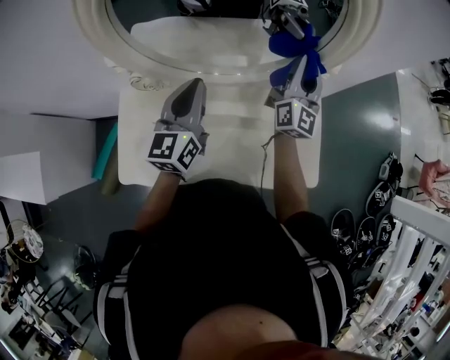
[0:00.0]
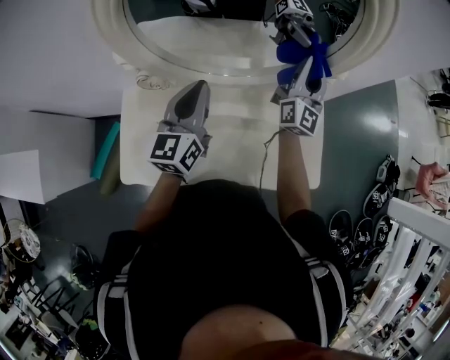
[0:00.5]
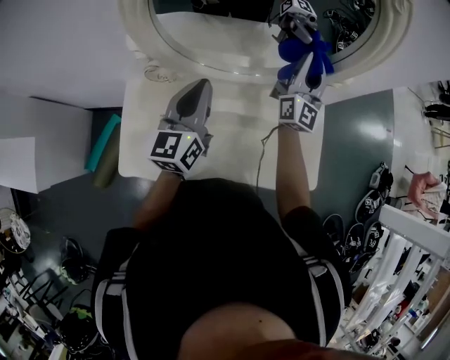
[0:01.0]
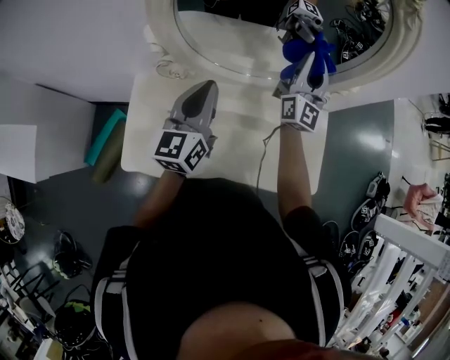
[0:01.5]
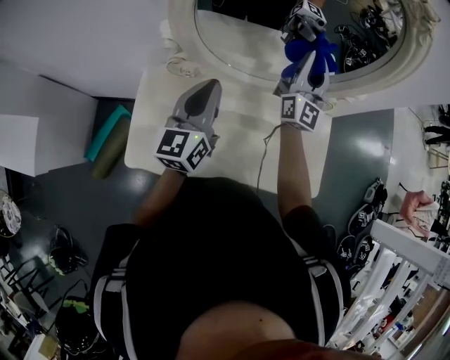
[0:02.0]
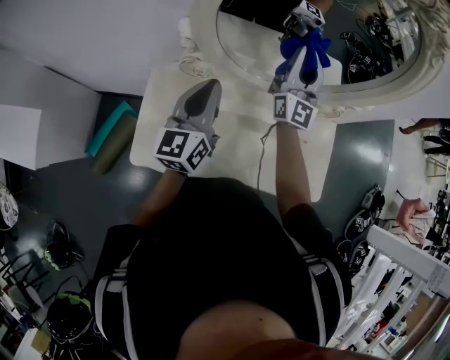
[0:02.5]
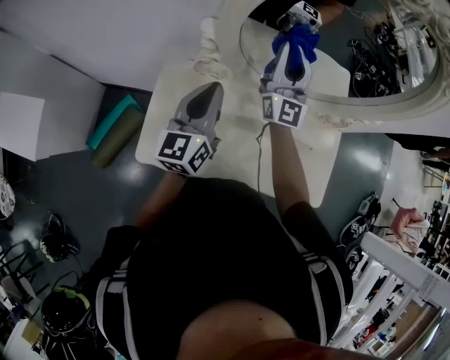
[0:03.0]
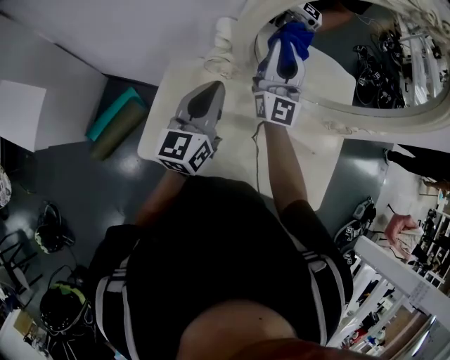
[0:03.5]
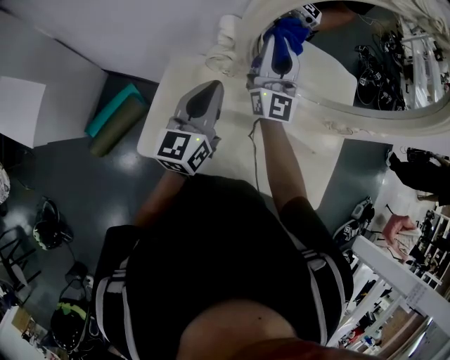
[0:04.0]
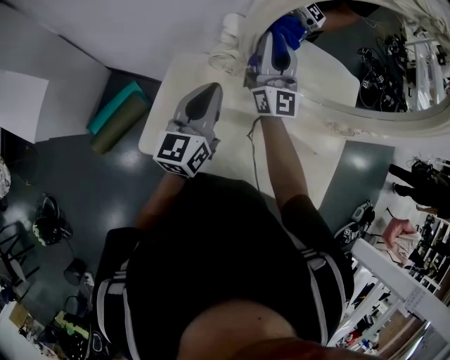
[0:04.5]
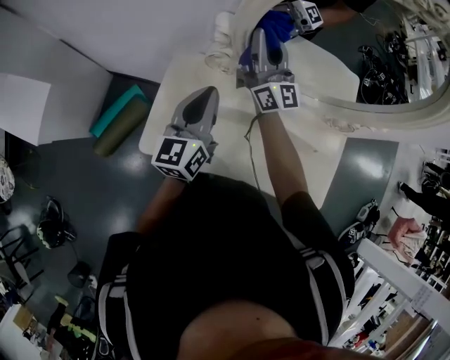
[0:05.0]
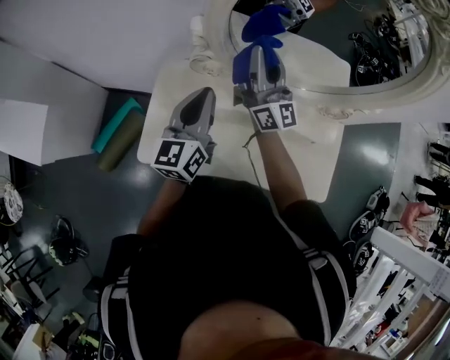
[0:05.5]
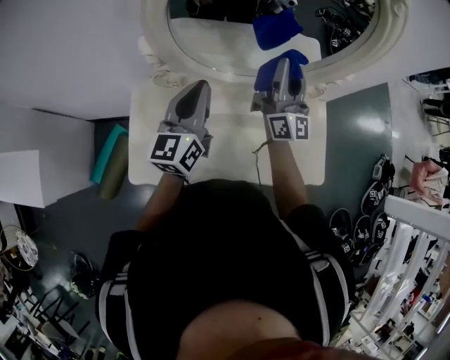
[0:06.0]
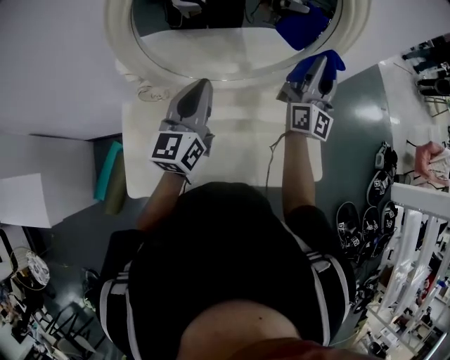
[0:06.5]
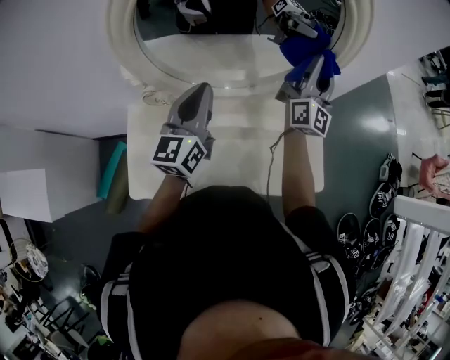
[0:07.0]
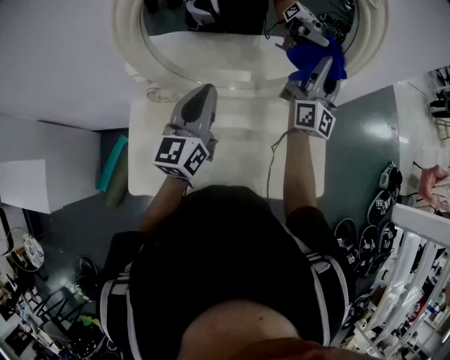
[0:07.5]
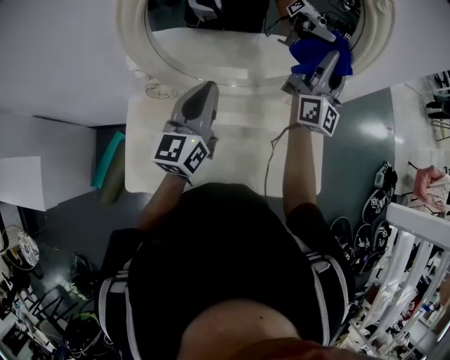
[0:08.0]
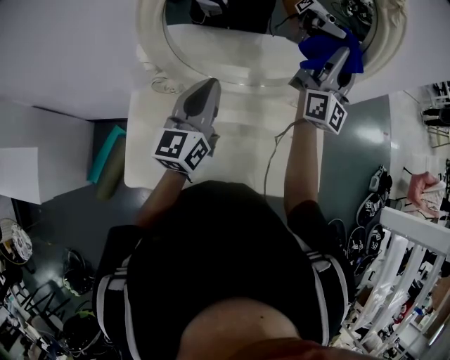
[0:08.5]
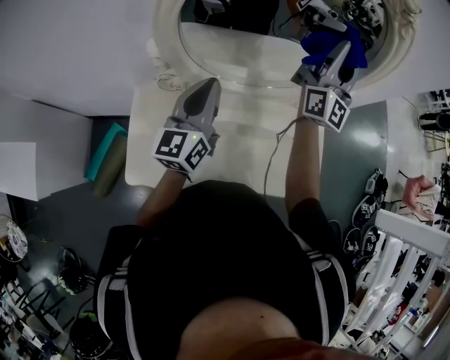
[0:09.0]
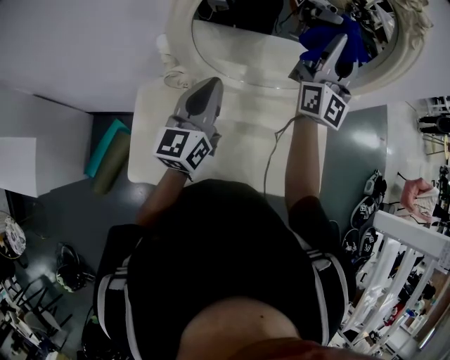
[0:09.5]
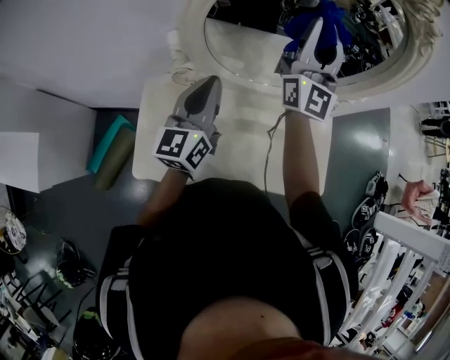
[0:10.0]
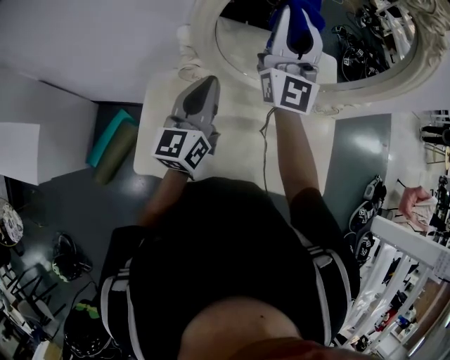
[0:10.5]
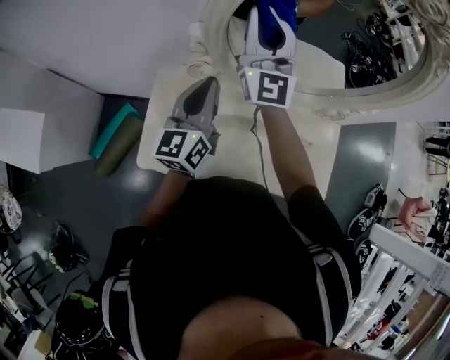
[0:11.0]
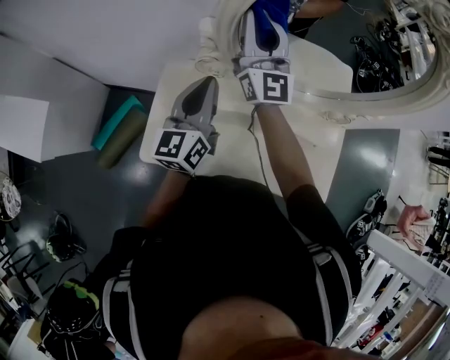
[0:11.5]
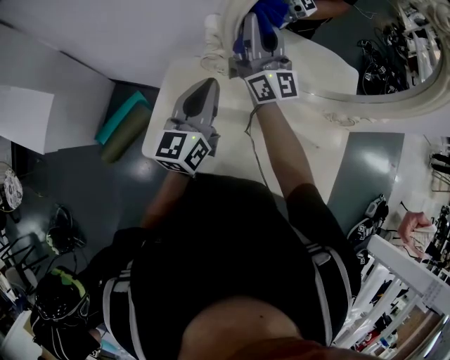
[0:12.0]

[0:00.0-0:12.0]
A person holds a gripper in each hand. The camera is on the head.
0:00.0 to 0:02.0: The right gripper travels to the left and upward by approximately 10 cm, while the left gripper moves backward and to the left, roughly 10 cm.
0:02.0 to 0:04.0: The right gripper shifts some 30 cm to the left, and rotates some 20 degrees. Meanwhile the left gripper is displaced to the left by roughly 15 cm.
0:04.0 to 0:06.0: The right gripper heads to the right and backward, covering approximately 25 cm, and rotates about 20 degrees; the left gripper goes roughly 10 cm to the right.
0:06.0 to 0:08.0: The right gripper heads to the right and forward, covering some 15 cm, and turns by roughly 20 degrees, while the left gripper is displaced to the right by roughly 5 cm.
0:08.0 to 0:10.0: The right gripper is displaced to the left and upward by some 25 cm, and swivels some 20 degrees; the left gripper shifts approximately 10 cm to the left.
0:10.0 to 0:12.0: The right gripper is displaced to the left and downward by about 20 cm, and changes its angle by some 40 degrees; the left gripper goes approximately 10 cm to the left.

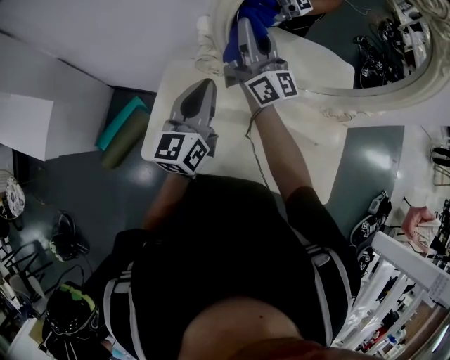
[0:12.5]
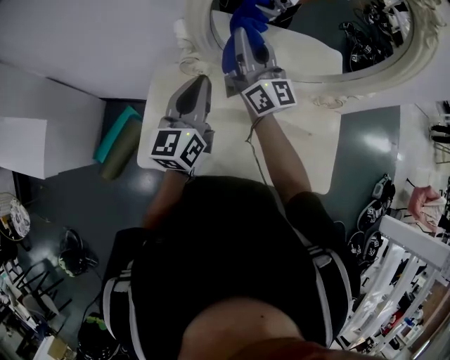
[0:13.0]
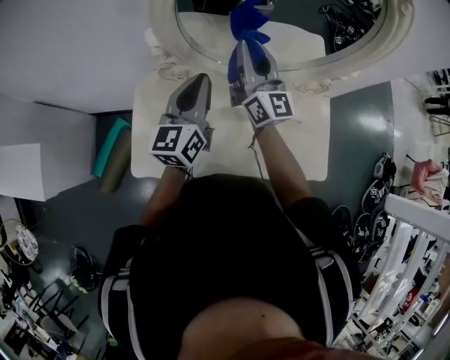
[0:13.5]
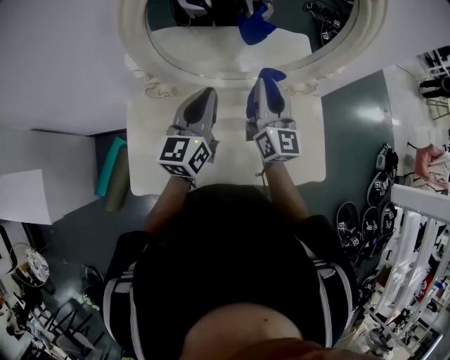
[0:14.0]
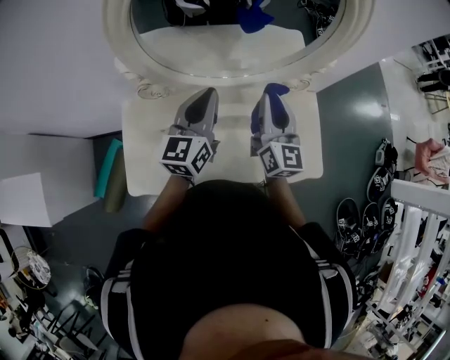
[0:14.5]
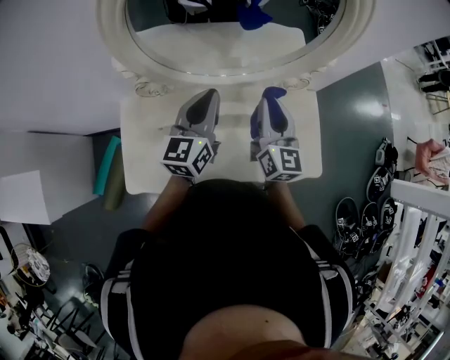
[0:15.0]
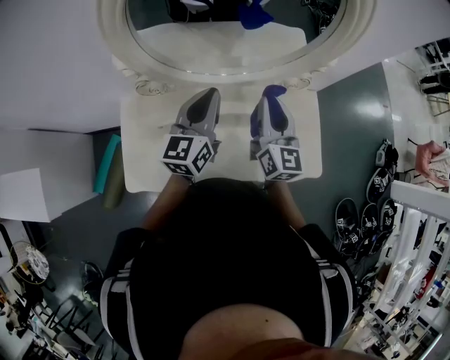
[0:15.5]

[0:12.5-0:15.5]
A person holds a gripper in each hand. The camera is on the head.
0:12.5 to 0:14.0: The left gripper shifts about 15 cm to the right; the right gripper is displaced to the right and backward by roughly 25 cm, and changes its angle by roughly 40 degrees.
0:14.0 to 0:15.5: The right gripper moves to the right, approximately 5 cm.

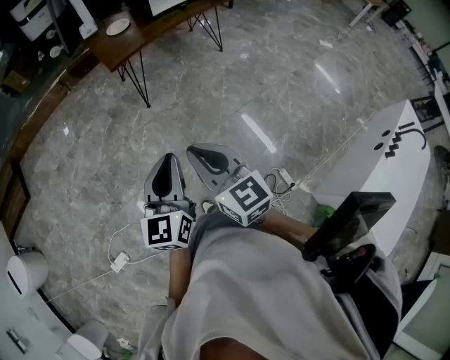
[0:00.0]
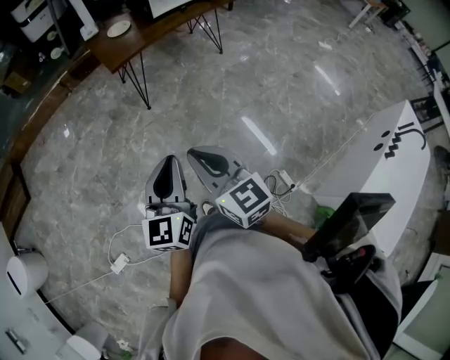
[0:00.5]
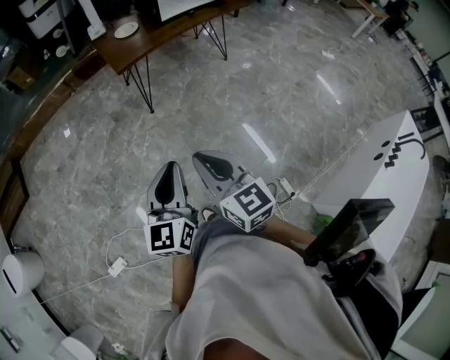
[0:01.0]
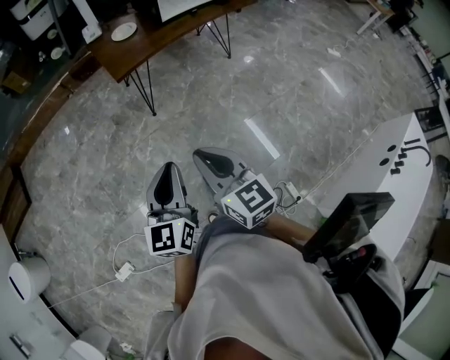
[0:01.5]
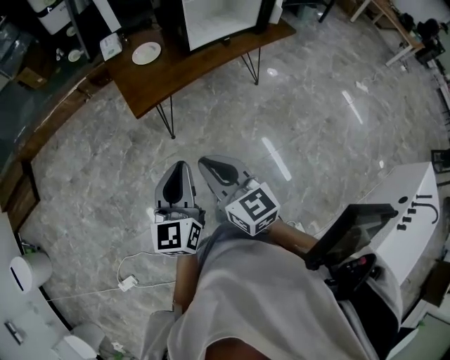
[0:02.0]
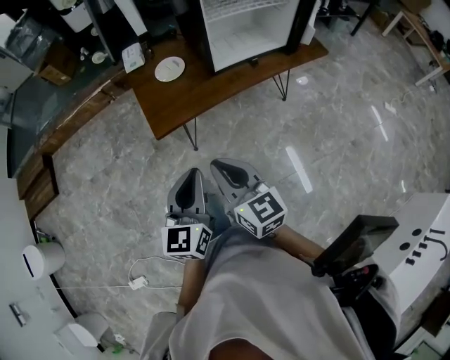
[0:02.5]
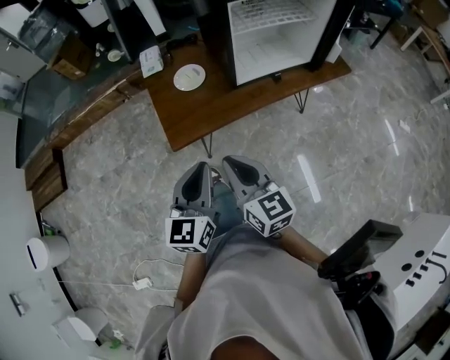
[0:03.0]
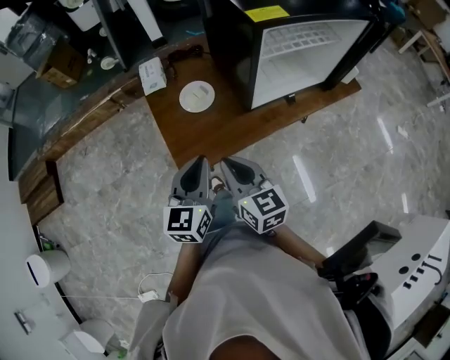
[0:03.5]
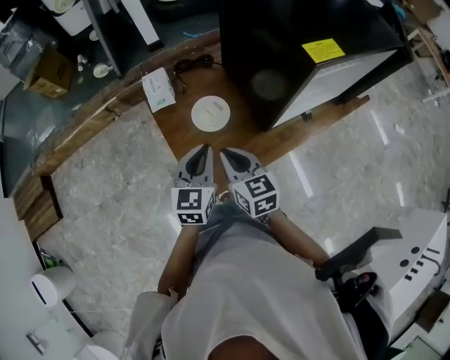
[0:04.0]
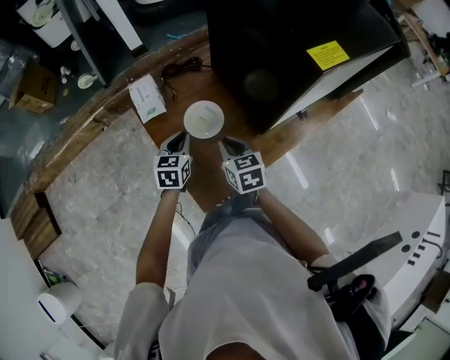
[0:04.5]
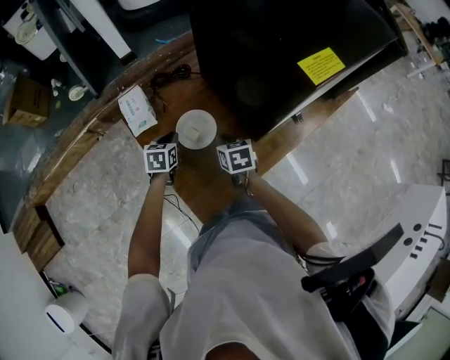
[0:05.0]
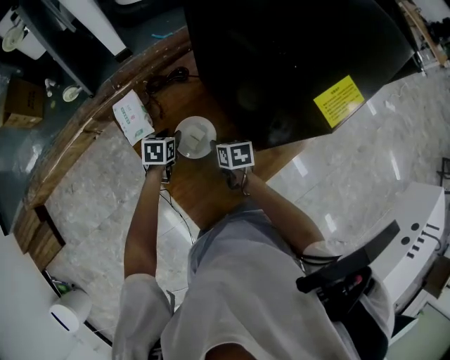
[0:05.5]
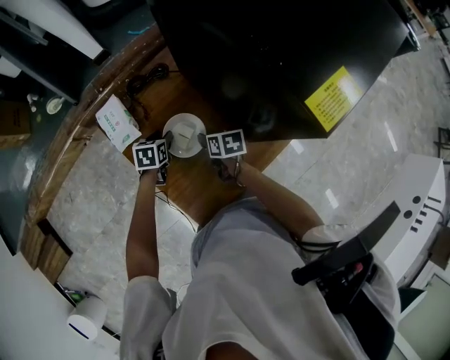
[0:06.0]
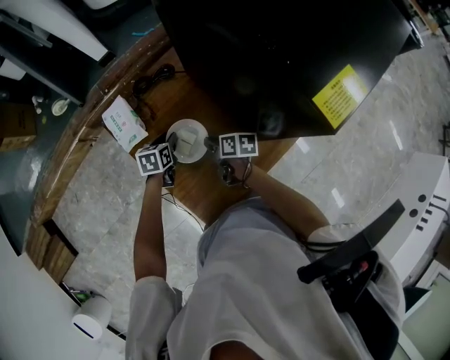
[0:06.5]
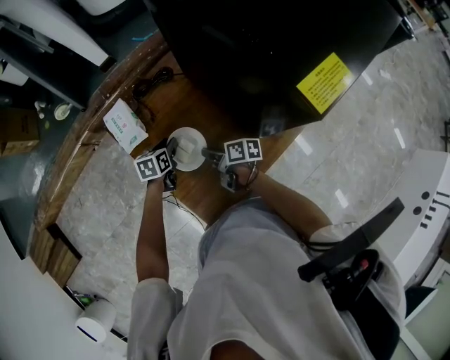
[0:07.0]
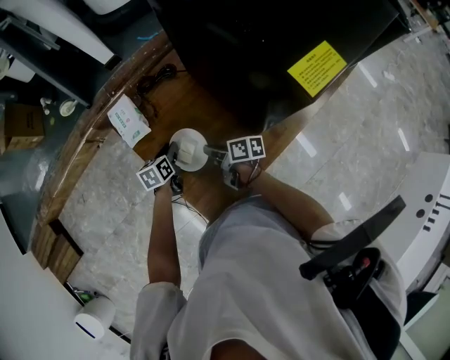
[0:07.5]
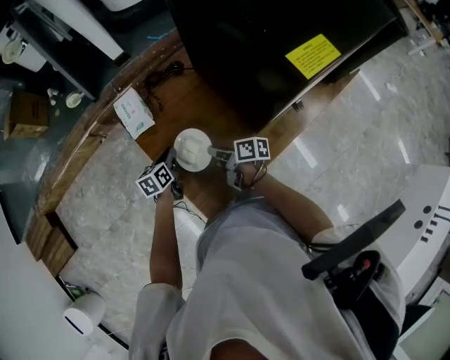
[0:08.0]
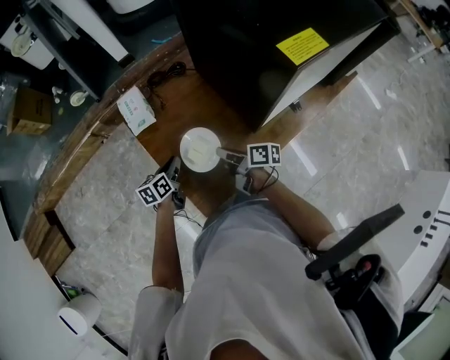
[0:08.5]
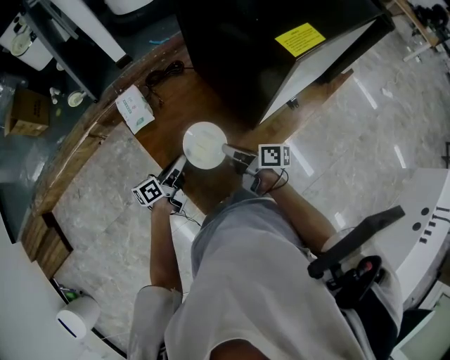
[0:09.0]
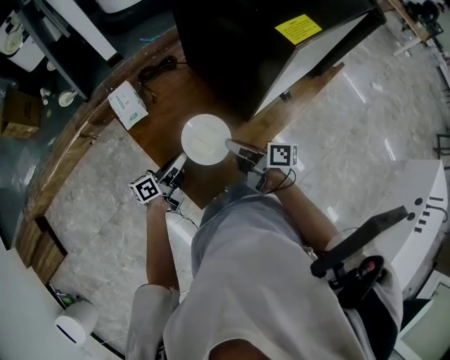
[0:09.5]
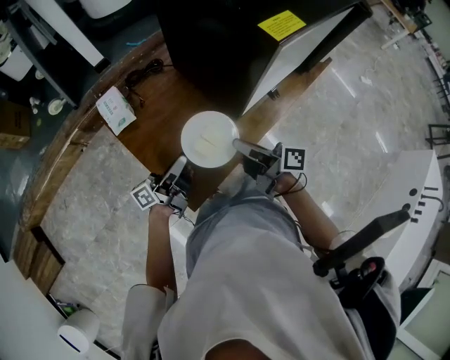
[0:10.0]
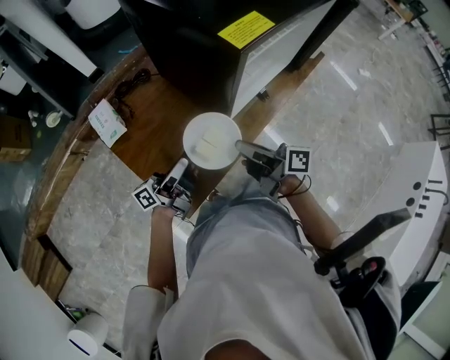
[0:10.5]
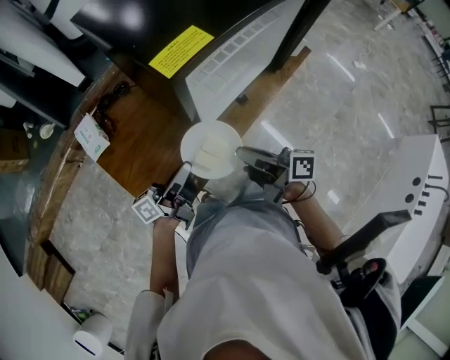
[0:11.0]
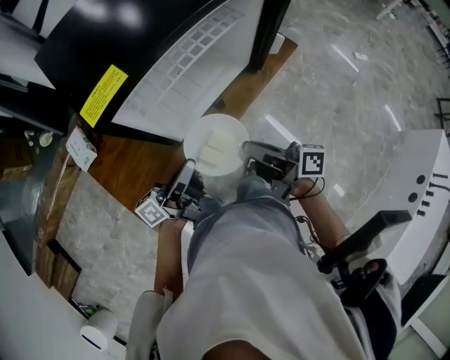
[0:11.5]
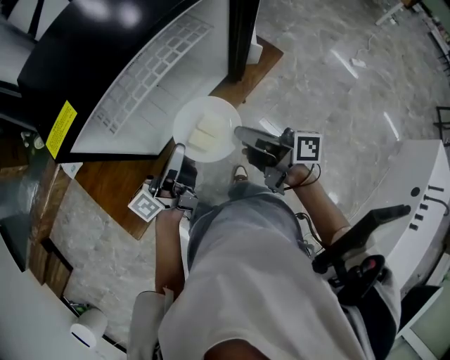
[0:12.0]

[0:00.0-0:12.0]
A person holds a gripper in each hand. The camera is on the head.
0:00.0 to 0:02.0: The pair of grippers is taken forward, about 50 cm.
0:02.0 to 0:04.0: The pair of grippers is taken forward, about 70 cm.
0:04.0 to 0:06.0: Both grippers move forward and downward, some 40 cm. The right gripper changes its angle by roughly 40 degrees, and opens. The left gripper angles its fingers downward, by roughly 40 degrees, and opens.
0:06.0 to 0:08.0: Both grippers travel together backward and to the left, about 15 cm. The right gripper changes its angle by approximately 40 degrees, and closes its fingers. Meanwhile the left gripper turns by about 30 degrees, and closes.
0:08.0 to 0:10.0: Both grippers move upward, backward and to the right, approximately 20 cm. The left gripper tips its fingers upward by approximately 60 degrees. Meanwhile the right gripper swivels approximately 20 degrees.
0:10.0 to 0:12.0: The pair of grippers is taken to the right, roughly 50 cm. The left gripper opens, then closes once more.
